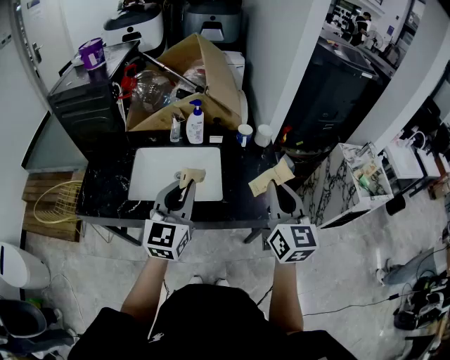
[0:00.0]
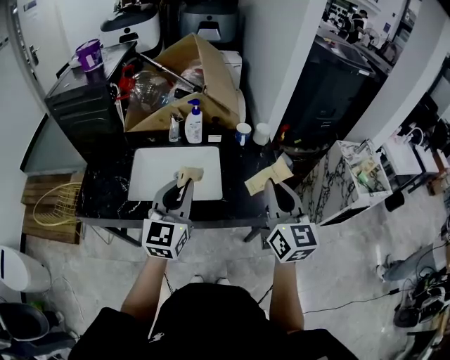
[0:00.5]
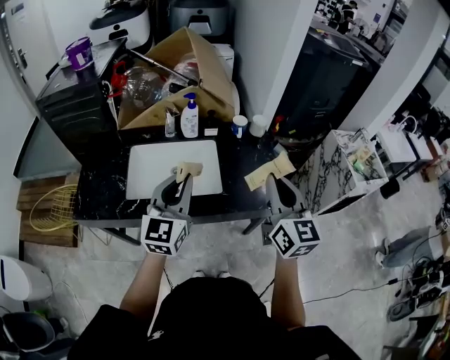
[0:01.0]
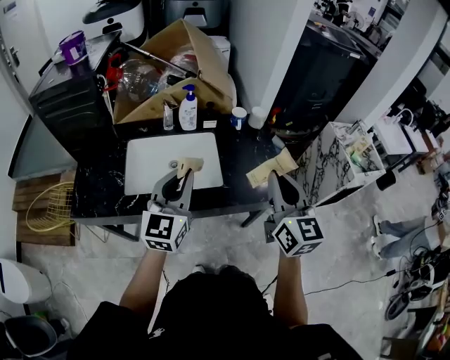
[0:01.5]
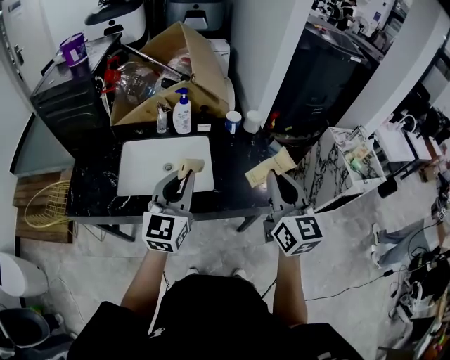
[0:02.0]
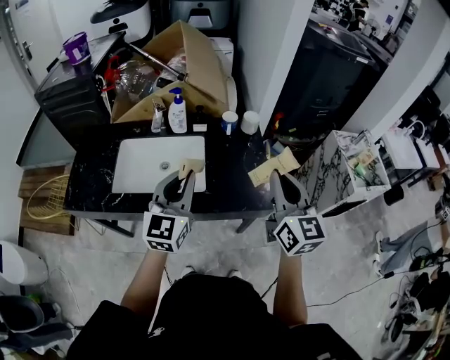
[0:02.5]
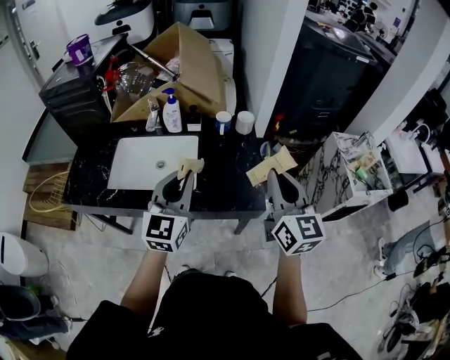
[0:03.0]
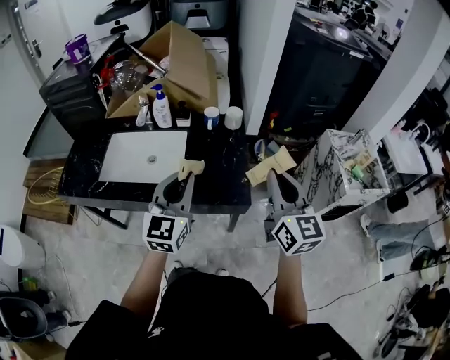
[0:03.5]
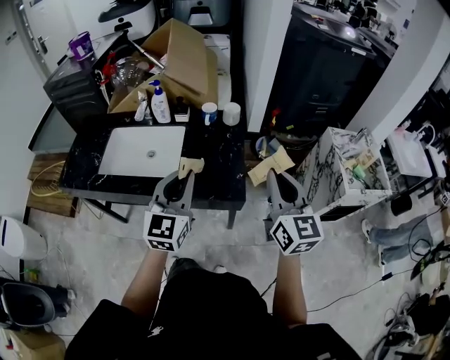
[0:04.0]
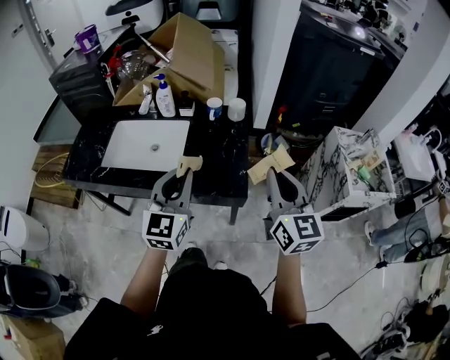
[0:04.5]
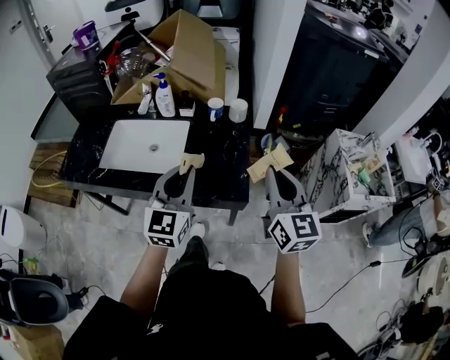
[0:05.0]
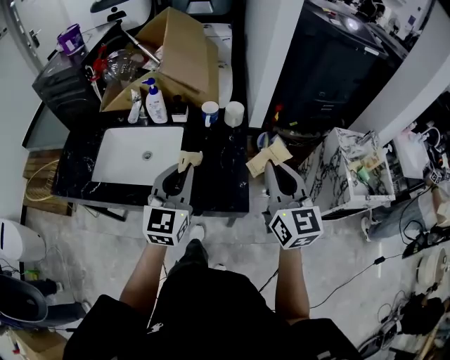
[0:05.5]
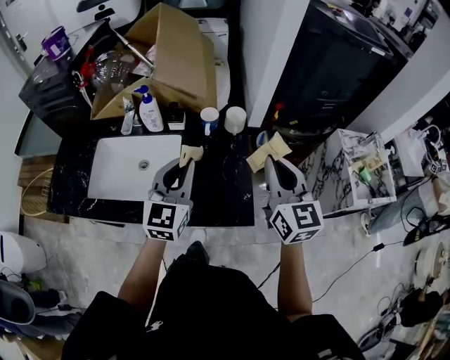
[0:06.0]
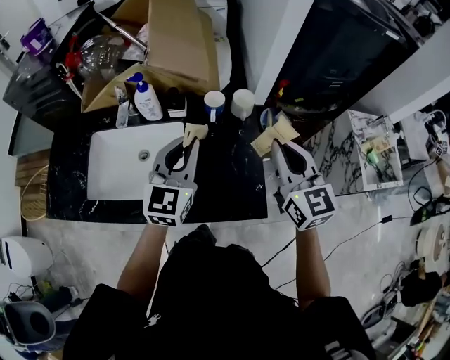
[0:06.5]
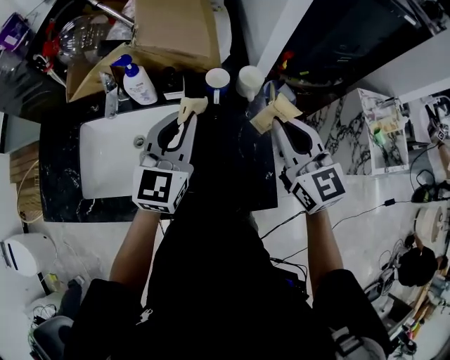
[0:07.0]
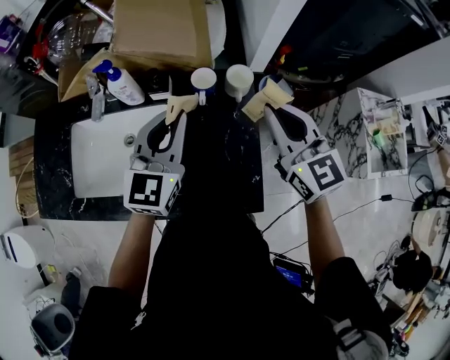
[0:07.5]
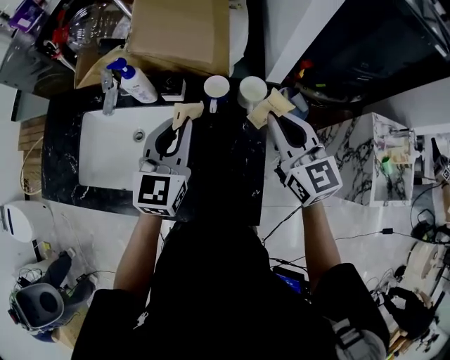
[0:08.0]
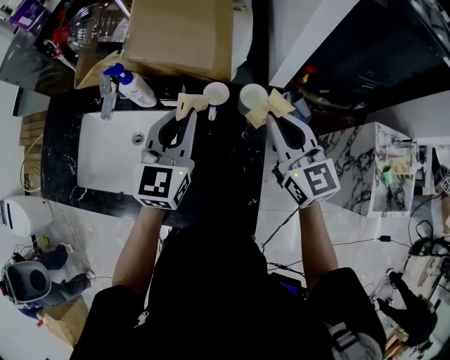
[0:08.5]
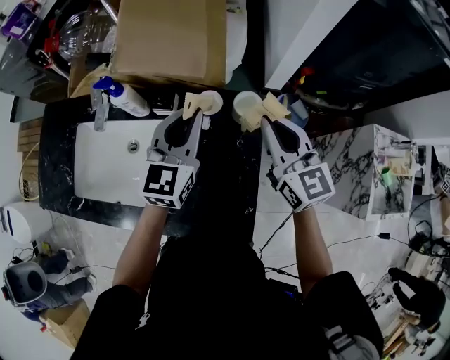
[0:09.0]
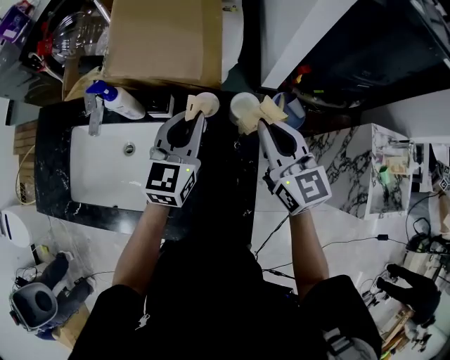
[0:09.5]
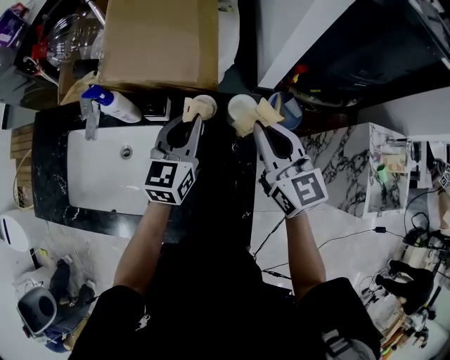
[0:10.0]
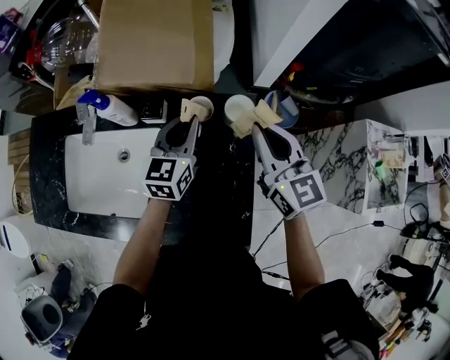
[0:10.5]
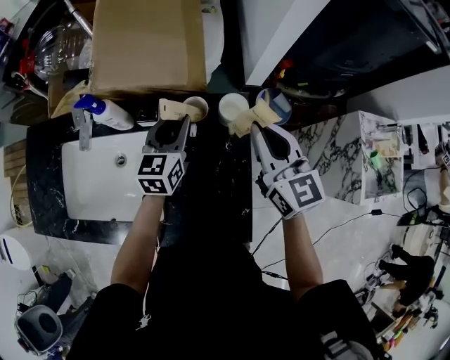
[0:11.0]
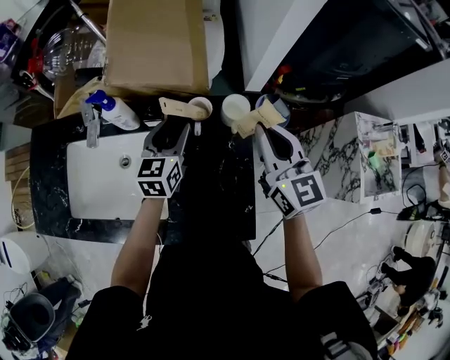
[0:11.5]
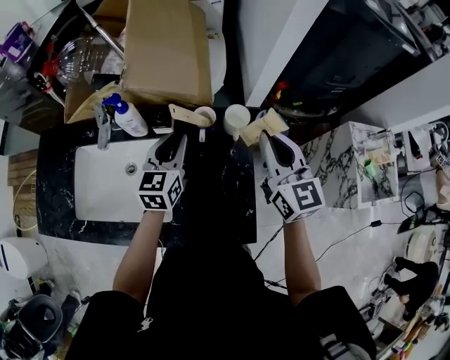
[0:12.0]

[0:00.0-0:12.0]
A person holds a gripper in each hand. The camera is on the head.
0:00.0 to 0:02.0: There are only small adjustments of the grippers.
0:02.0 to 0:04.0: The two grippers go some 20 cm to the right.
0:04.0 to 0:06.0: Both grippers move forward, approximately 15 cm.
0:06.0 to 0:08.0: The left gripper goes approximately 15 cm forward, while the right gripper travels forward and downward by approximately 20 cm.
0:08.0 to 0:10.0: The left gripper shifts approximately 10 cm forward, downward and to the right; the right gripper shifts about 5 cm forward.
0:10.0 to 0:12.0: The right gripper shifts approximately 10 cm upward and backward. The left gripper goes some 5 cm to the left, and opens, then closes again.

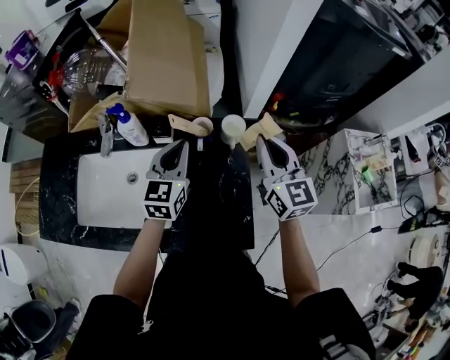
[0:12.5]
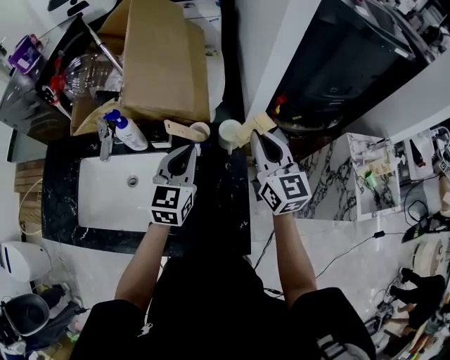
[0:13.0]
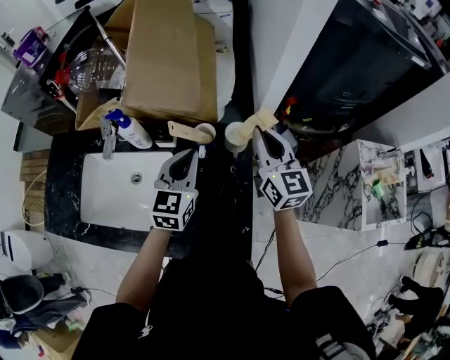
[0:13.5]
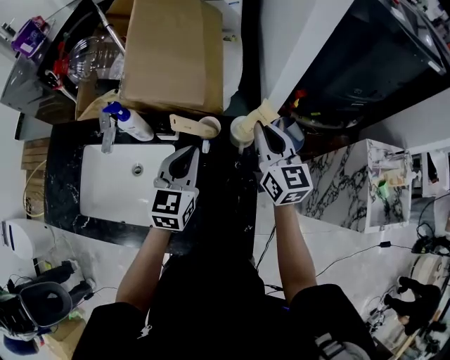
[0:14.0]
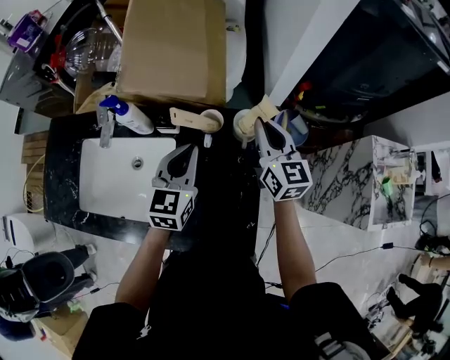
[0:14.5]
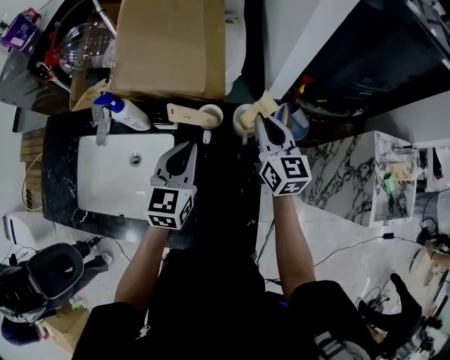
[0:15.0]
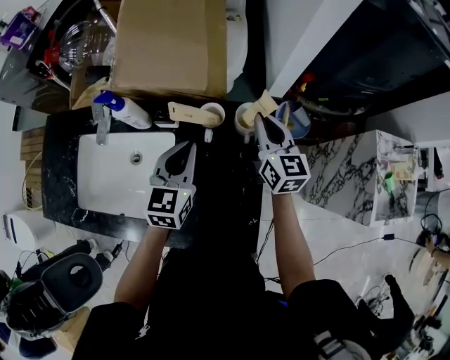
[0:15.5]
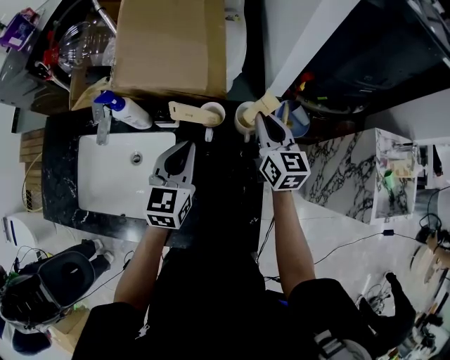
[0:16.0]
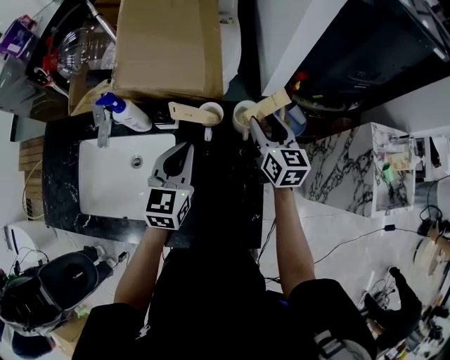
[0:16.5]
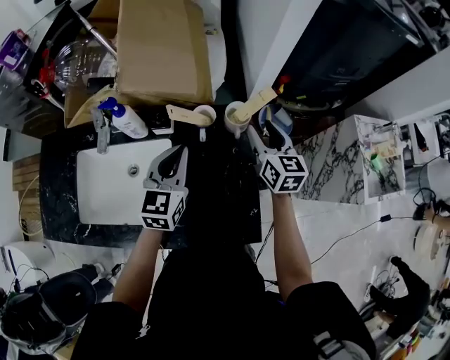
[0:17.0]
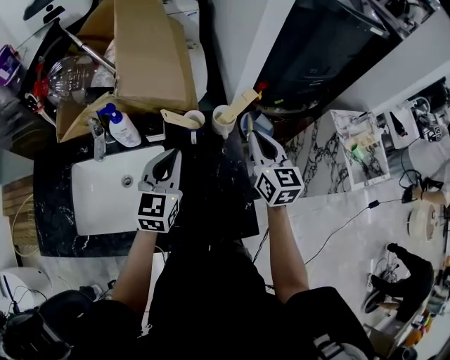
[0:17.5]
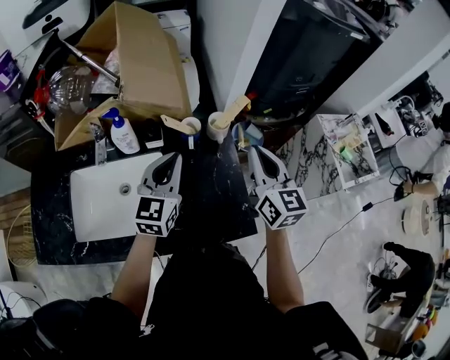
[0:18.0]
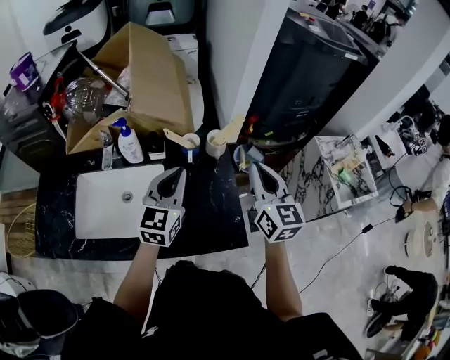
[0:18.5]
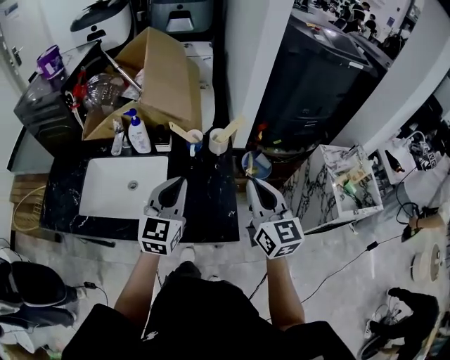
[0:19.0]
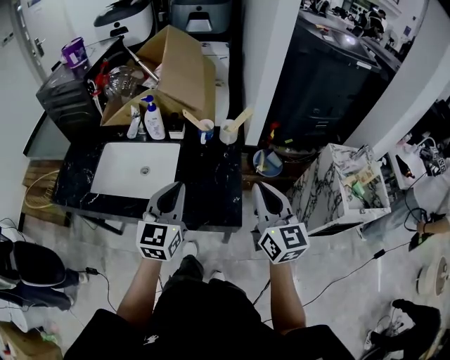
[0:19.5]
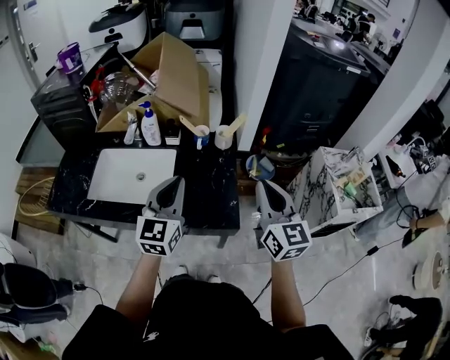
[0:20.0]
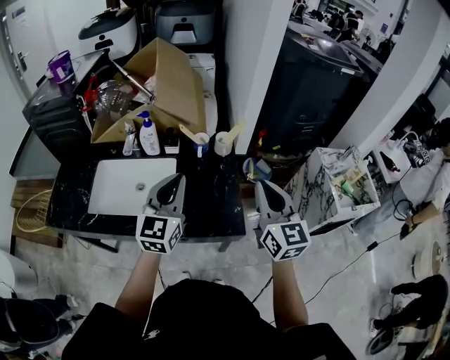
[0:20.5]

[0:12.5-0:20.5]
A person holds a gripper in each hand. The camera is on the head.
0:12.5 to 0:14.5: The right gripper is displaced forward and downward by some 15 cm.
0:14.5 to 0:16.5: The right gripper goes roughly 5 cm downward, and opens its fingers.
0:16.5 to 0:18.5: The left gripper moves upward and backward, roughly 15 cm. The right gripper heads backward and upward, covering some 30 cm, and closes its fingers.
0:18.5 to 0:20.5: The left gripper heads backward and upward, covering approximately 15 cm. The right gripper travels backward by about 15 cm.

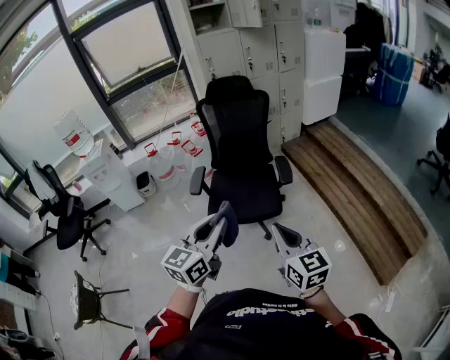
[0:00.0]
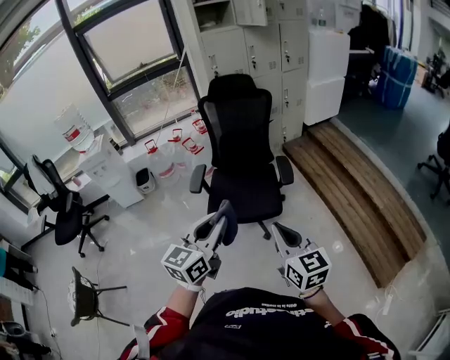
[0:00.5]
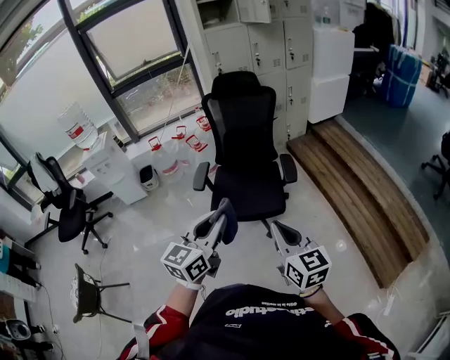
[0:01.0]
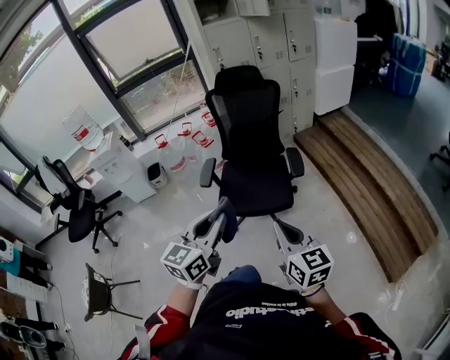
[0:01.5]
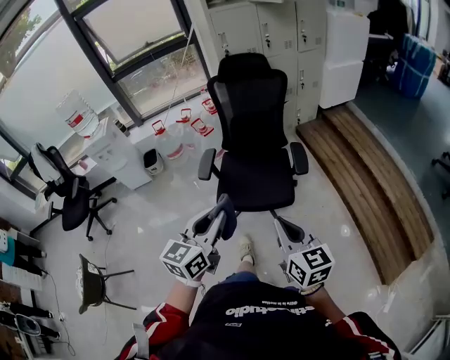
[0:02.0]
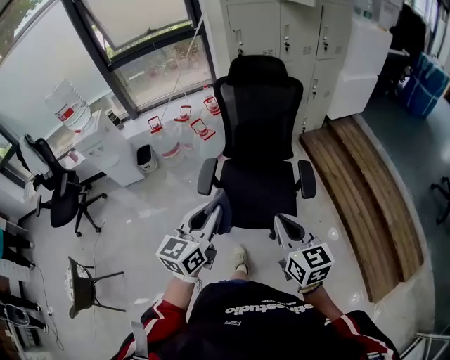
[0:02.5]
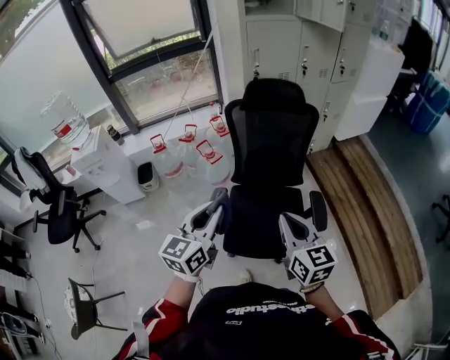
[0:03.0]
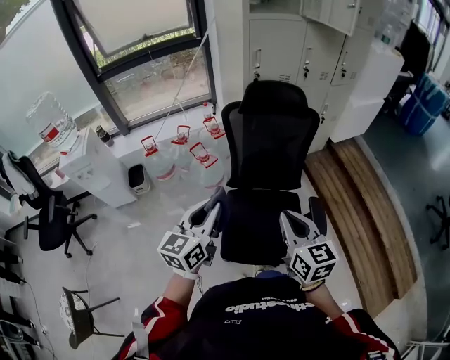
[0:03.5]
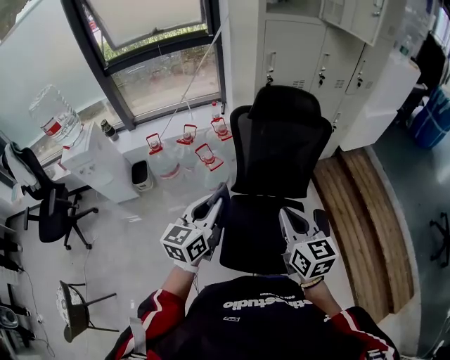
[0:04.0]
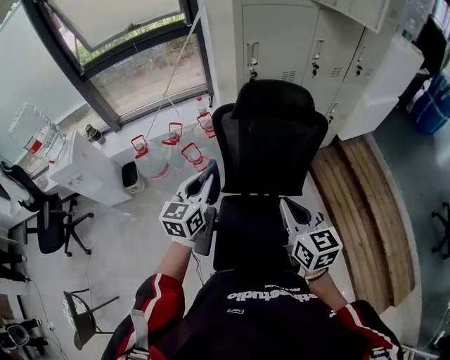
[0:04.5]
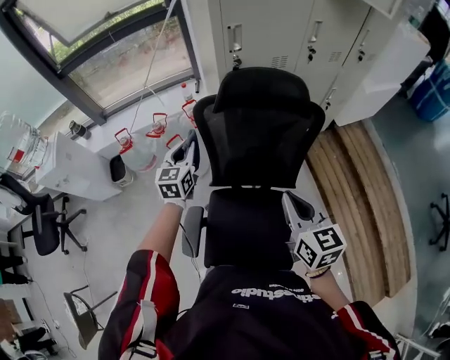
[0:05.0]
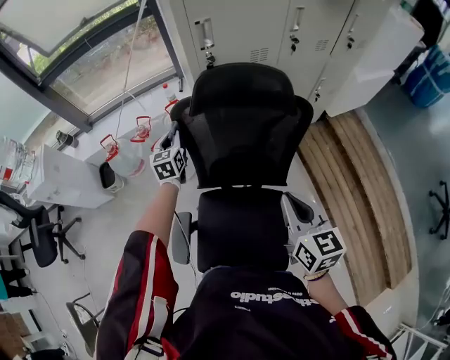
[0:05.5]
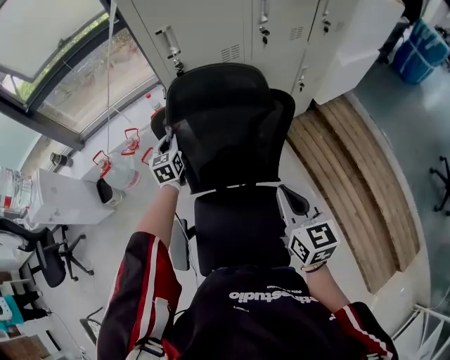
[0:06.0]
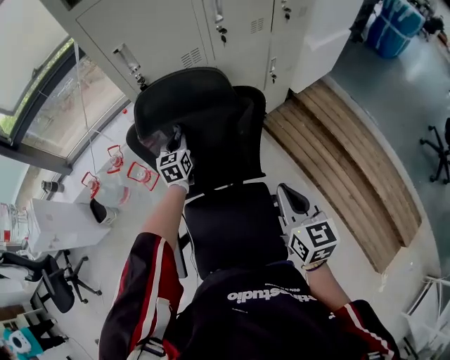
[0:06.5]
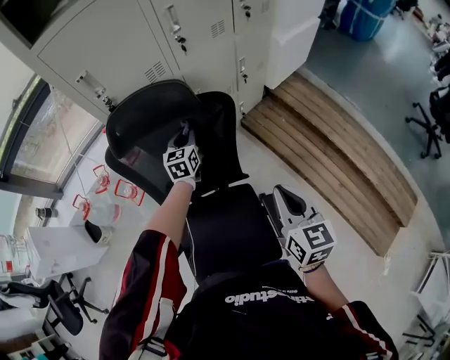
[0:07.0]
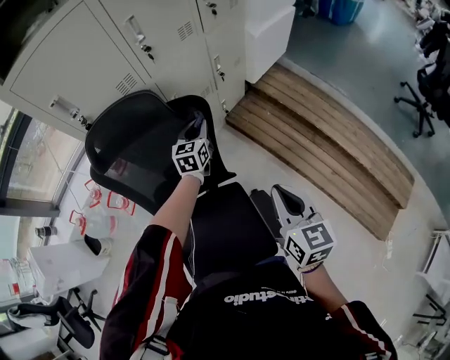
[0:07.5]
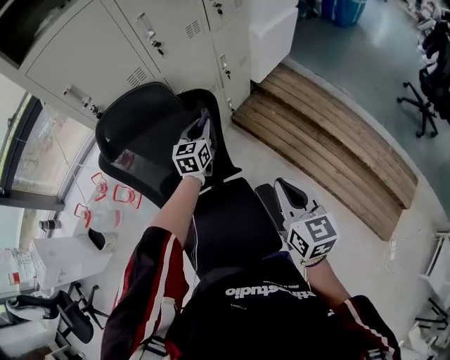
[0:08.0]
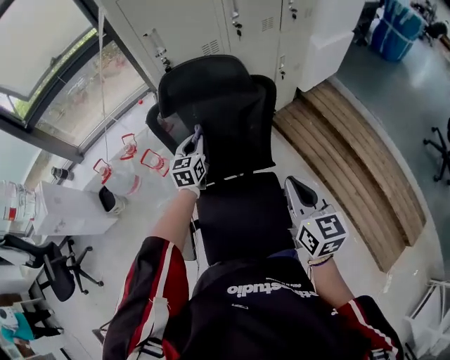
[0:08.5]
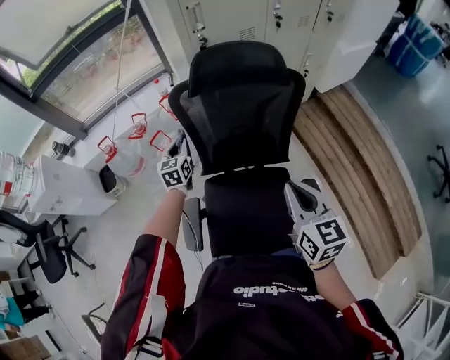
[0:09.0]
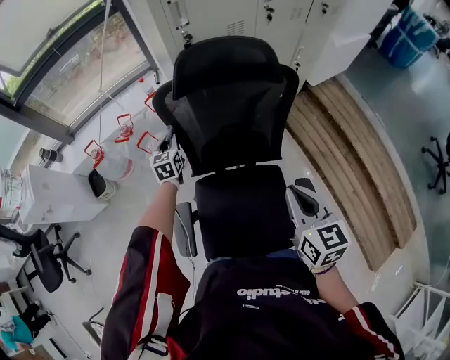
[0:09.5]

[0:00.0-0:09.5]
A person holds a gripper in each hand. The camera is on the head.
0:00.0 to 0:02.0: The grippers both shift forward by some 5 cm.
0:02.0 to 0:04.0: The two grippers travel together, forward, approximately 50 cm.
0:04.0 to 0:05.5: The left gripper goes roughly 50 cm forward and downward, and changes its angle by roughly 30 degrees; the right gripper travels forward and to the right by approximately 30 cm.
0:05.5 to 0:07.5: The left gripper moves some 50 cm, and changes its angle by approximately 40 degrees. Meanwhile the right gripper changes place by some 25 cm, and swivels about 30 degrees.
0:07.5 to 0:09.5: The left gripper travels to the left by roughly 50 cm, and turns by some 30 degrees; the right gripper moves to the left, approximately 25 cm.
